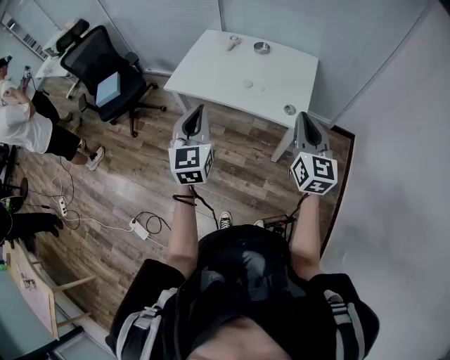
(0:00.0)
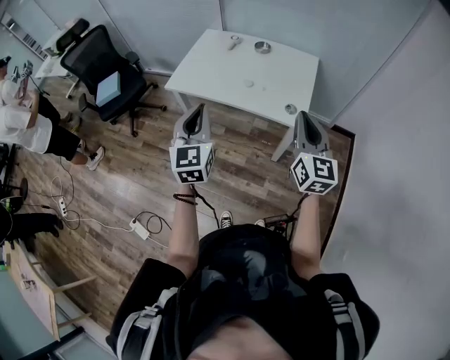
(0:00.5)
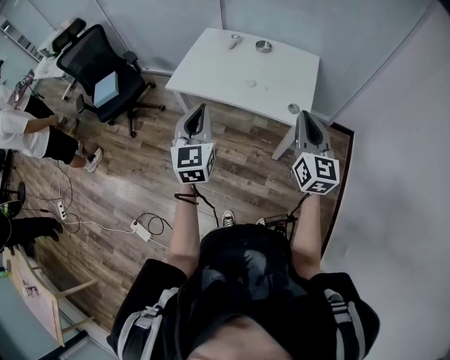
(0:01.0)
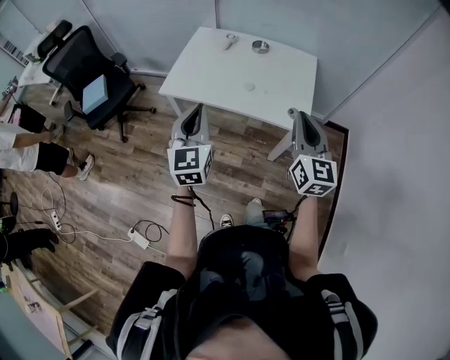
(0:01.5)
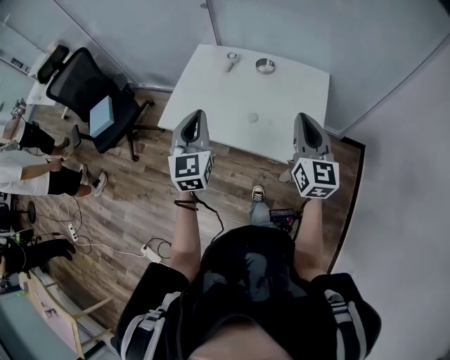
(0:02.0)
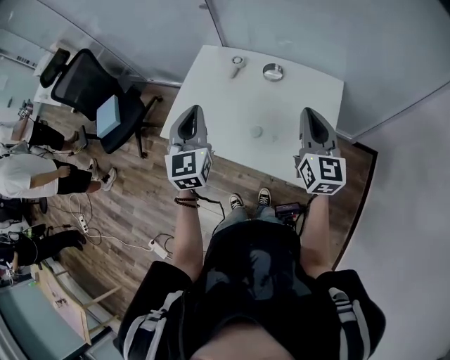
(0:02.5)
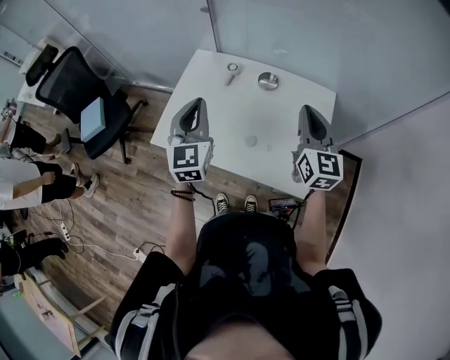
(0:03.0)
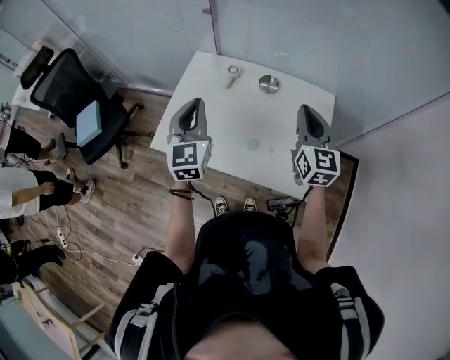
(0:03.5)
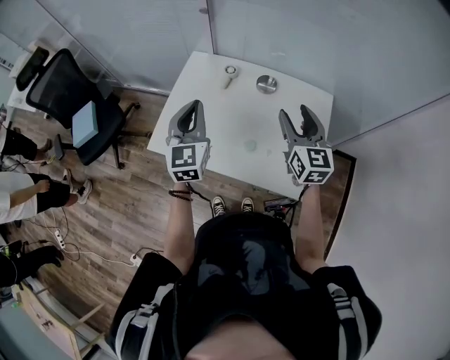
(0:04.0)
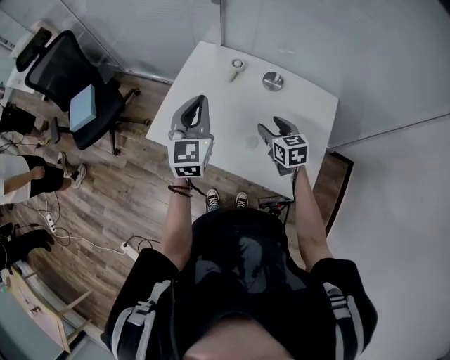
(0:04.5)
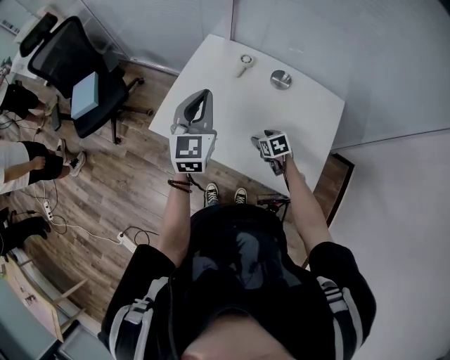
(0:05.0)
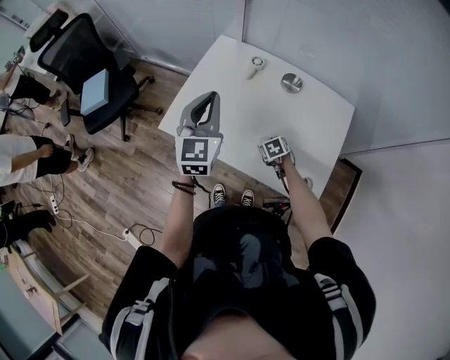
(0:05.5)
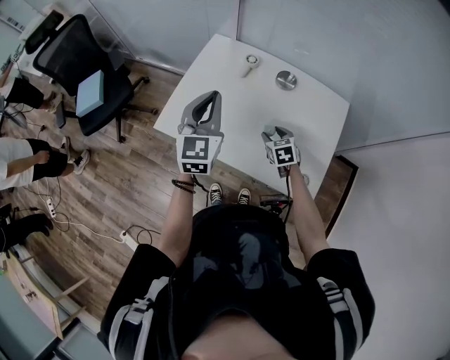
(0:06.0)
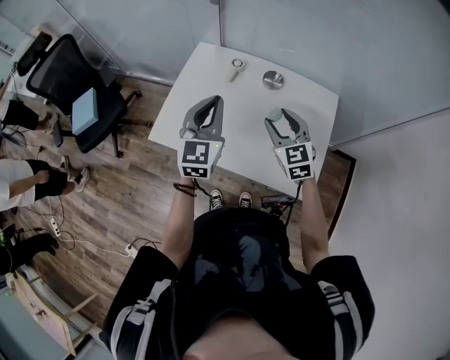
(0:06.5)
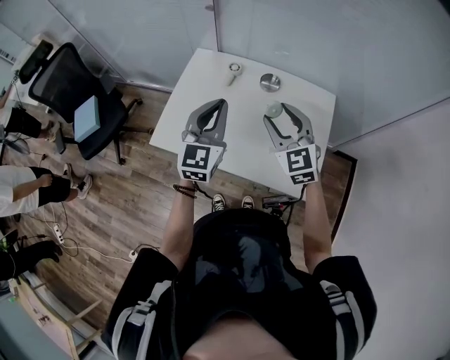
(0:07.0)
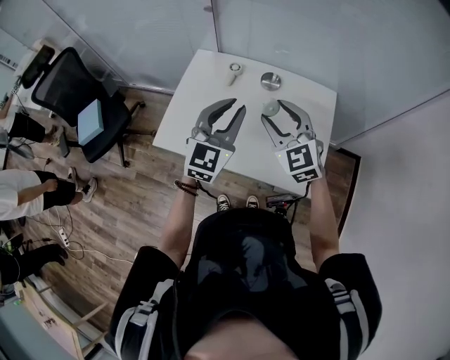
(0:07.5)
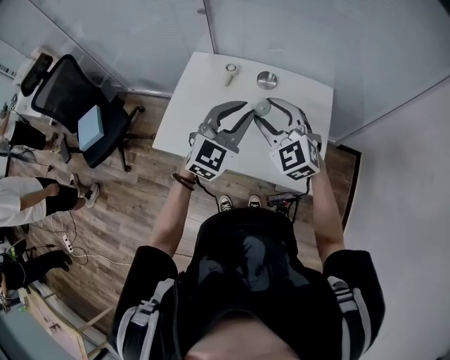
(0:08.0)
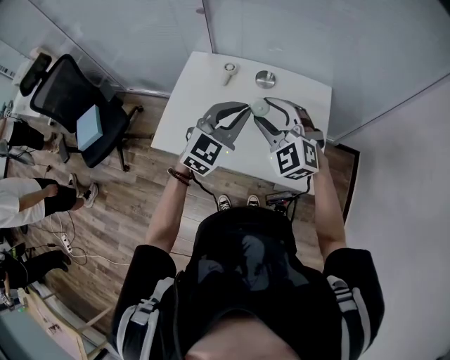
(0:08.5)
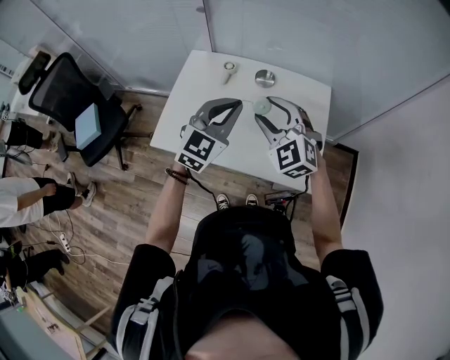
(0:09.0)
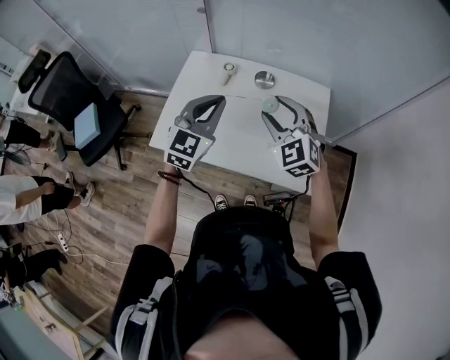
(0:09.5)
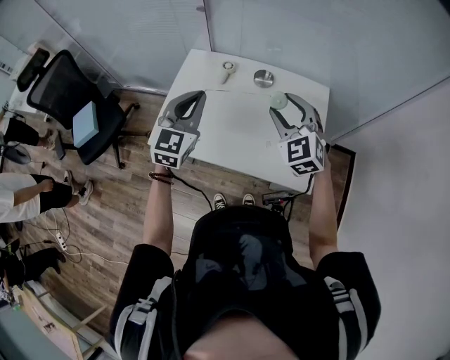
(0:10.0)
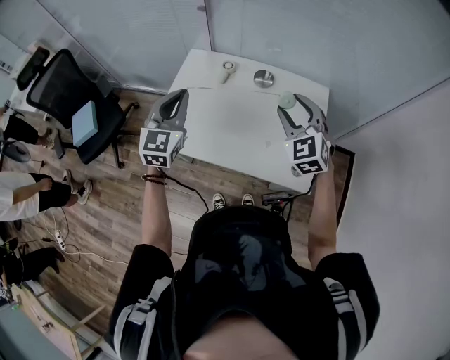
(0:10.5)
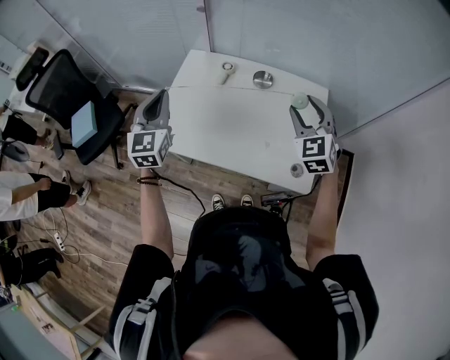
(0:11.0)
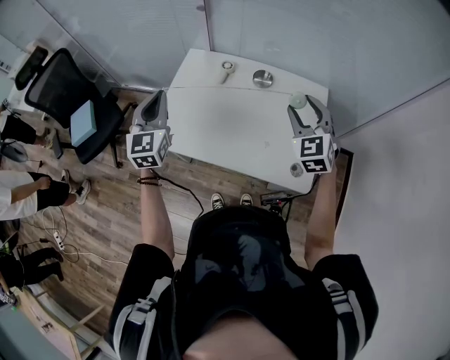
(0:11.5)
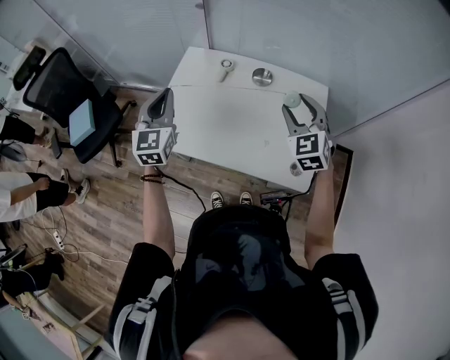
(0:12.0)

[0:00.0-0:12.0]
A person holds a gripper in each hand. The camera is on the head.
0:00.0 to 0:02.0: Both grippers travel together forward, some 20 cm.
0:02.0 to 0:04.0: Both grippers travel together forward, roughly 20 cm. The right gripper opens.
0:04.0 to 0:06.0: The right gripper is displaced downward by some 25 cm, and tilts its fingers approximately 40 degrees downward.
0:06.0 to 0:08.0: The right gripper goes about 30 cm upward, and turns by roughly 40 degrees. Meanwhile the left gripper heads to the right, covering some 15 cm, and turns by some 40 degrees.
0:08.0 to 0:10.0: The right gripper shifts by approximately 5 cm. Meanwhile the left gripper goes about 10 cm to the left.
0:10.0 to 0:12.0: The right gripper moves approximately 5 cm. Meanwhile the left gripper moves to the left, approximately 10 cm.

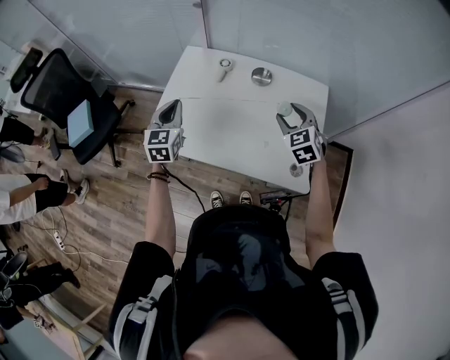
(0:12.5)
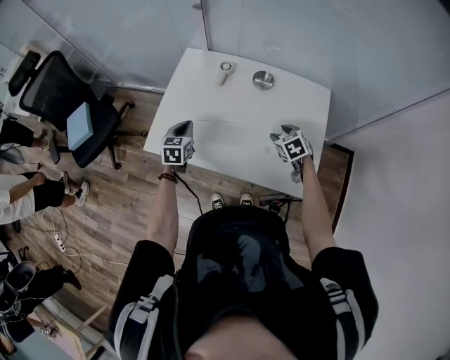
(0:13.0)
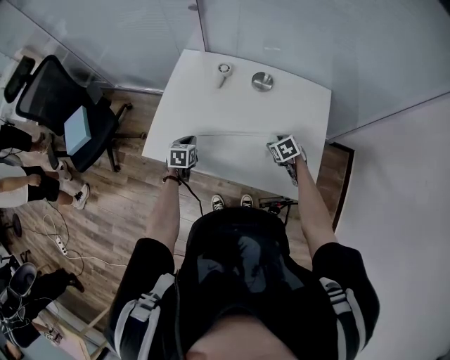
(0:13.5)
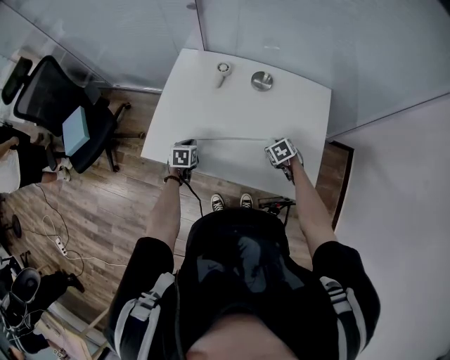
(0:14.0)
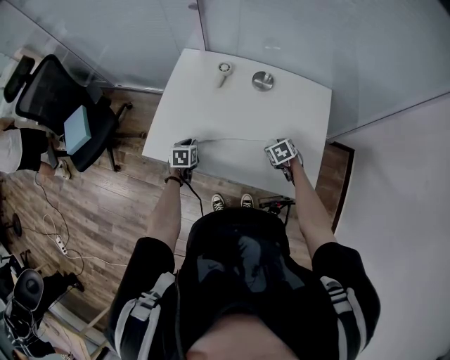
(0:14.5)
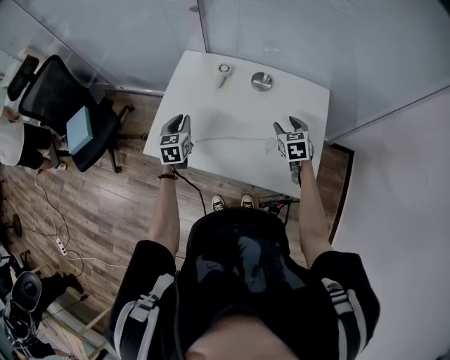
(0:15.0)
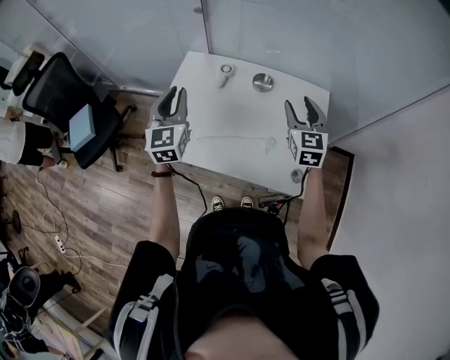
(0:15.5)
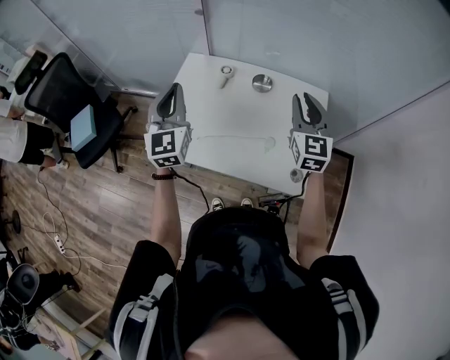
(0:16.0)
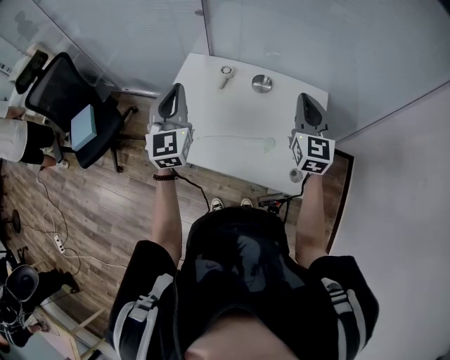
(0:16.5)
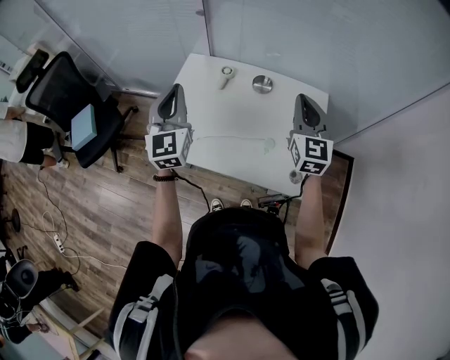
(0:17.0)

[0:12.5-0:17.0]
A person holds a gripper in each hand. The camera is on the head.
0:12.5 to 0:14.5: The grippers both shift downward by roughly 25 cm. The right gripper angles its fingers downward, by approximately 30 degrees, while the left gripper angles its fingers downward, by some 40 degrees.
0:14.5 to 0:17.0: The two grippers go roughly 40 cm upward. The right gripper angles its fingers upward, by roughly 70 degrees, and closes its fingers. Meanwhile the left gripper points its fingers approximately 60 degrees further upward.

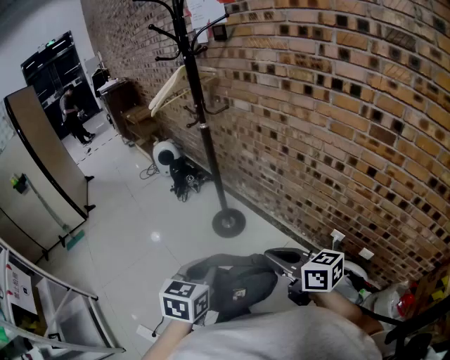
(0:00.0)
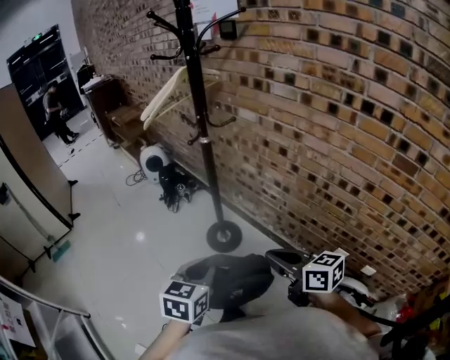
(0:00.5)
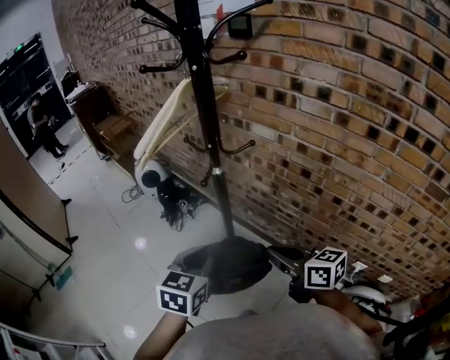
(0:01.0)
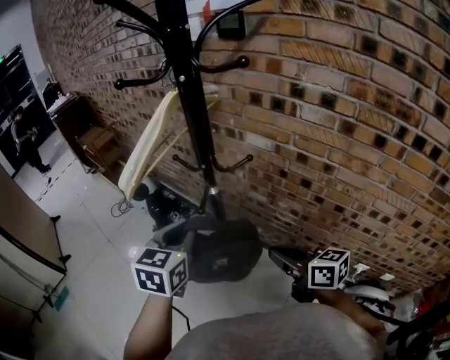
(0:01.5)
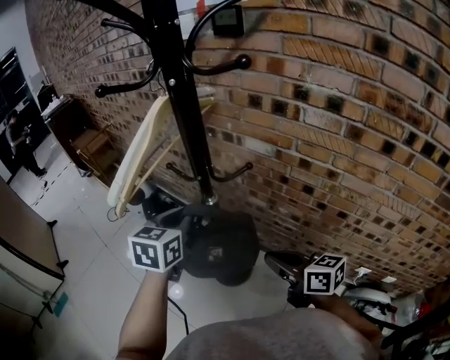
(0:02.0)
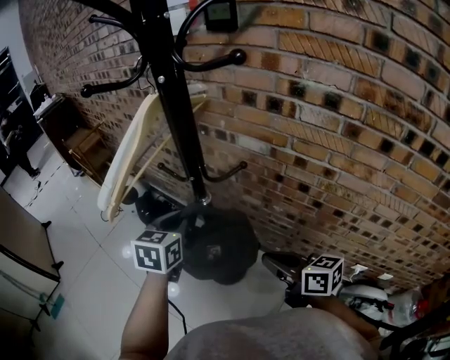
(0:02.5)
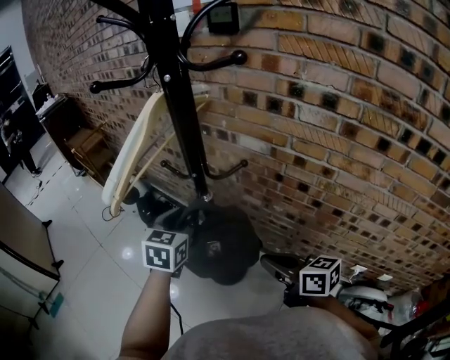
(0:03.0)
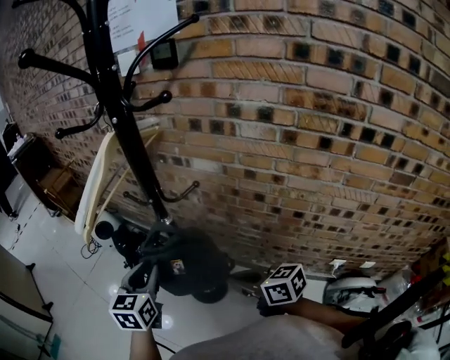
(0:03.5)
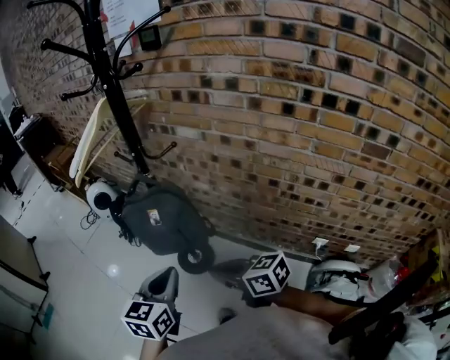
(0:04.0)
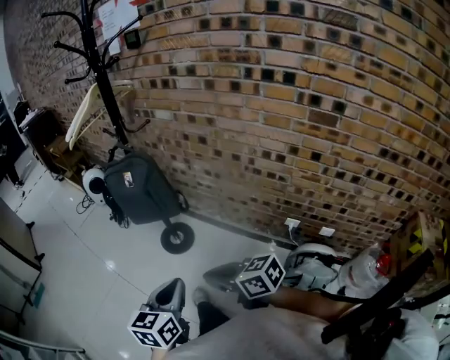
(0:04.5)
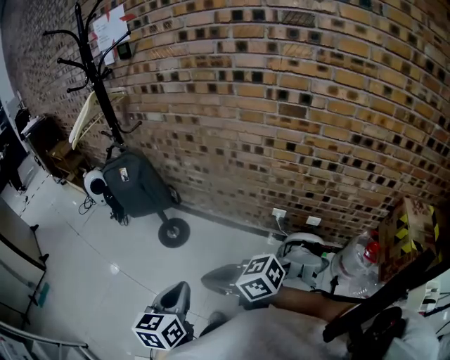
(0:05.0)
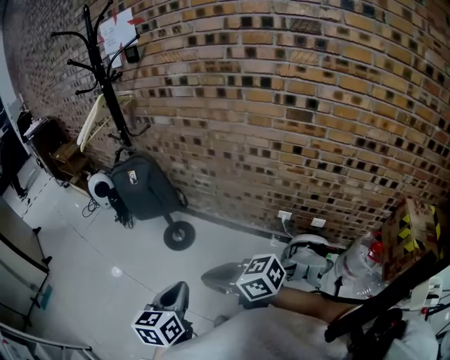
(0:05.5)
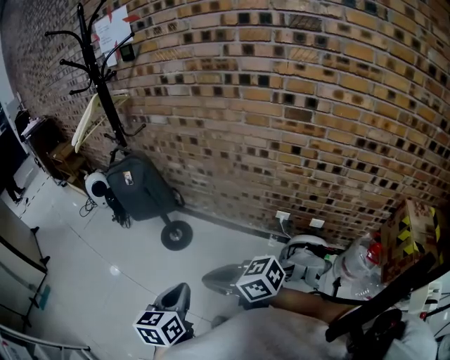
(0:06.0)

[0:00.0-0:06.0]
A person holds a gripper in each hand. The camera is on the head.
0:00.0 to 0:02.0: The two grippers travel together, forward, roughly 50 cm.
0:02.0 to 0:04.0: The right gripper shifts some 20 cm backward. The left gripper heads backward, covering about 30 cm, and opens, then closes once more.
0:04.0 to 0:06.0: The grippers both shift backward by about 35 cm.

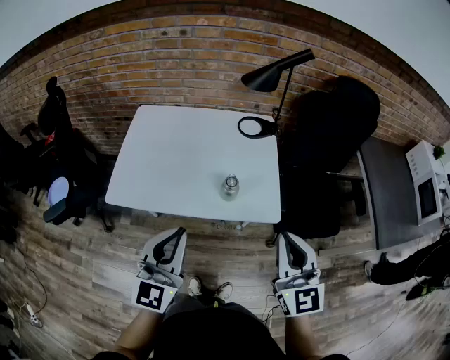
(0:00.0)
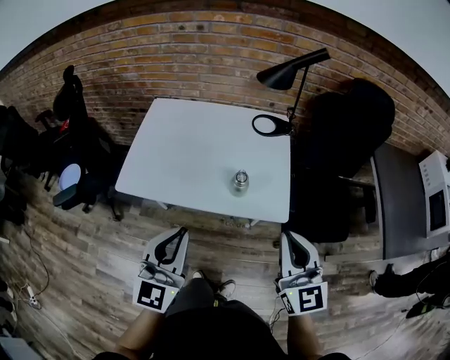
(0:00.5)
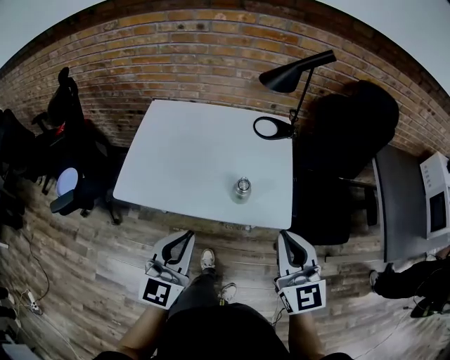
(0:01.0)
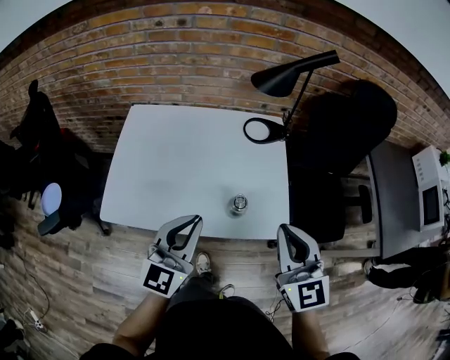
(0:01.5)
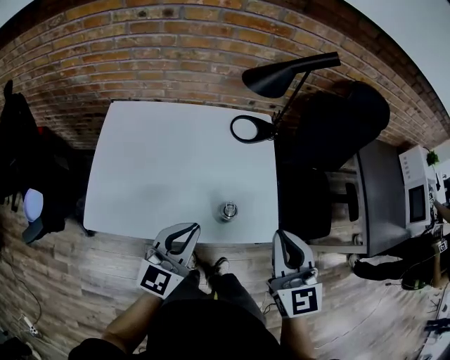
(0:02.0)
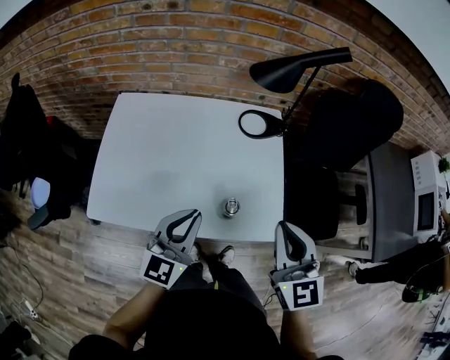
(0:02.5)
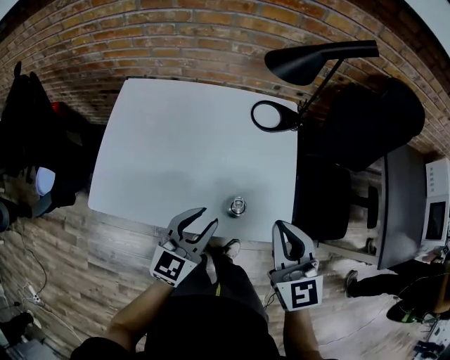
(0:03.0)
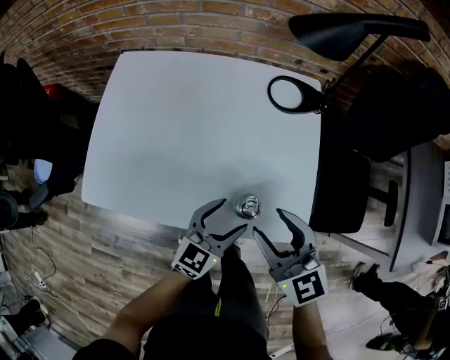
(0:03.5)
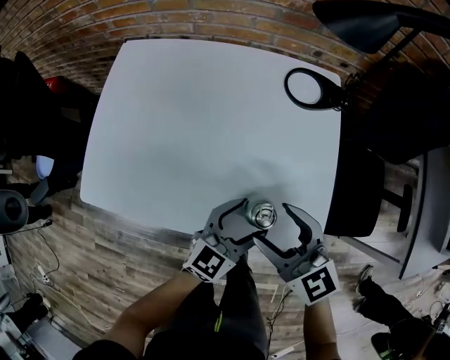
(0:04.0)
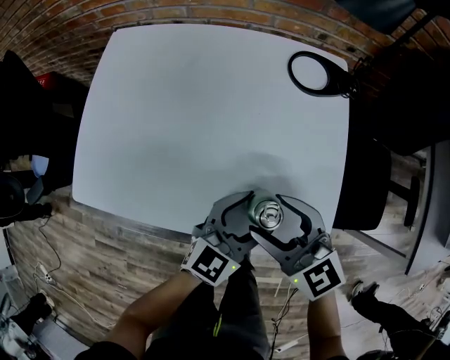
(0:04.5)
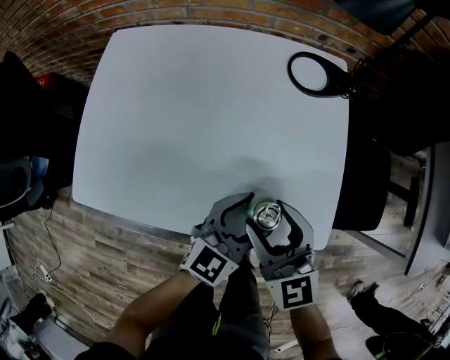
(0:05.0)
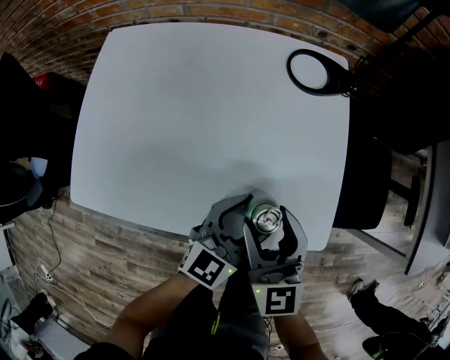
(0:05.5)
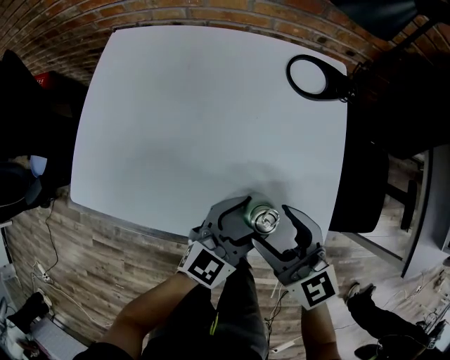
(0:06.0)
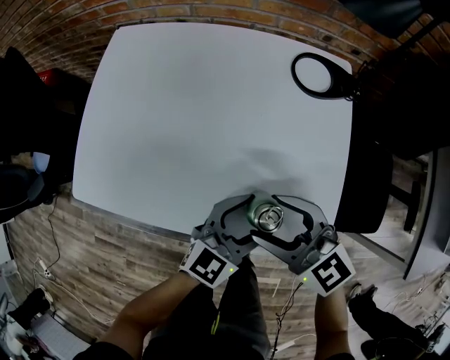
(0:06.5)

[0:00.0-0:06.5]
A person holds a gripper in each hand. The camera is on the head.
0:00.0 to 0:02.0: The right gripper heads forward, covering about 15 cm. Meanwhile the left gripper is displaced forward and downward by about 20 cm, and swivels roughly 20 degrees.
0:02.0 to 0:04.5: The left gripper goes approximately 25 cm downward and to the right, and opens its fingers. Meanwhile the right gripper heads downward, covering roughly 25 cm, turns by some 40 degrees, and opens.
